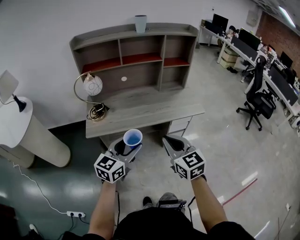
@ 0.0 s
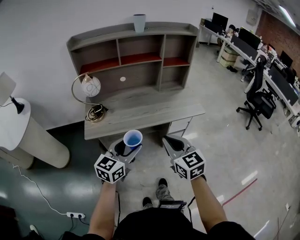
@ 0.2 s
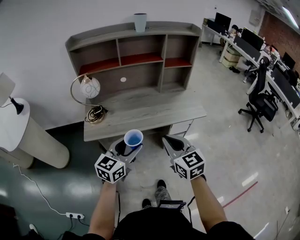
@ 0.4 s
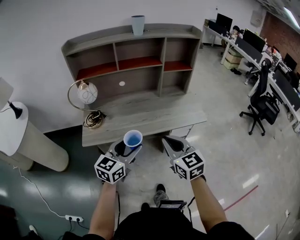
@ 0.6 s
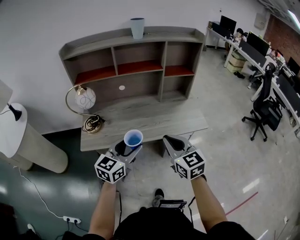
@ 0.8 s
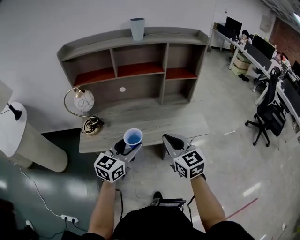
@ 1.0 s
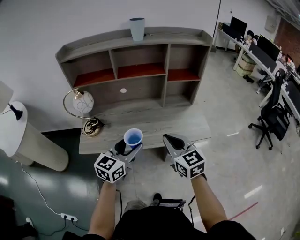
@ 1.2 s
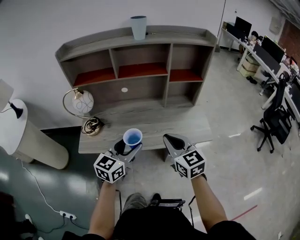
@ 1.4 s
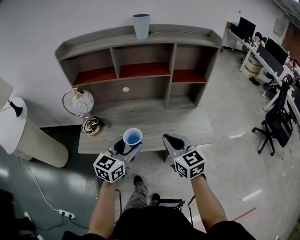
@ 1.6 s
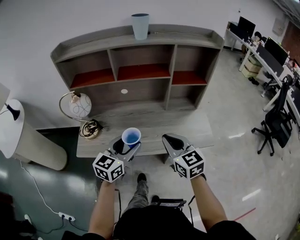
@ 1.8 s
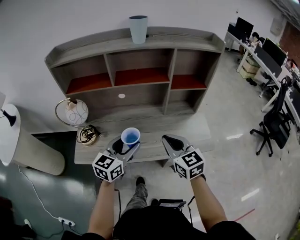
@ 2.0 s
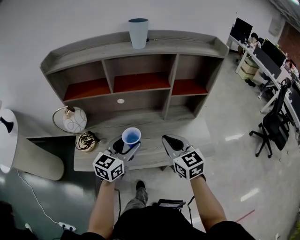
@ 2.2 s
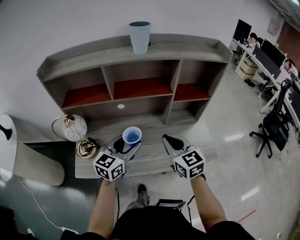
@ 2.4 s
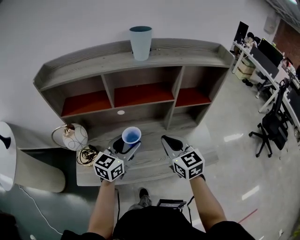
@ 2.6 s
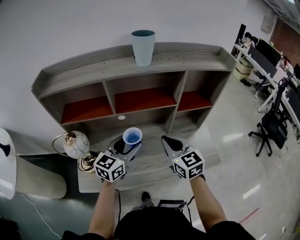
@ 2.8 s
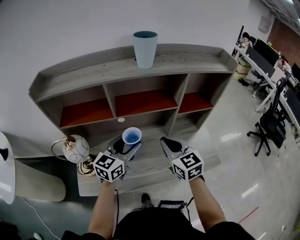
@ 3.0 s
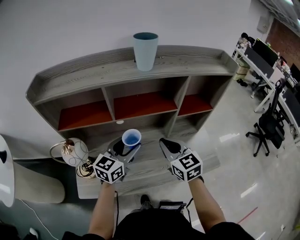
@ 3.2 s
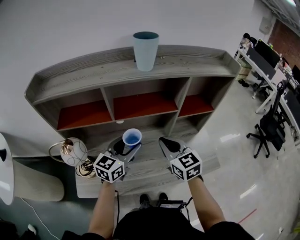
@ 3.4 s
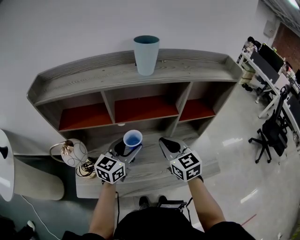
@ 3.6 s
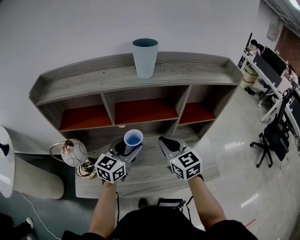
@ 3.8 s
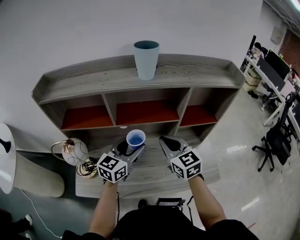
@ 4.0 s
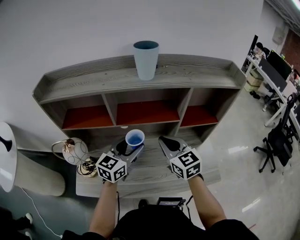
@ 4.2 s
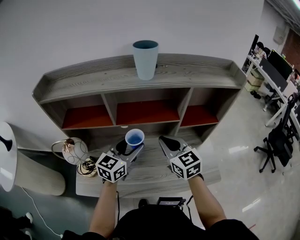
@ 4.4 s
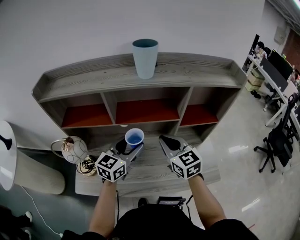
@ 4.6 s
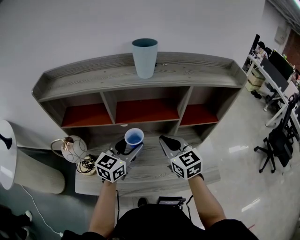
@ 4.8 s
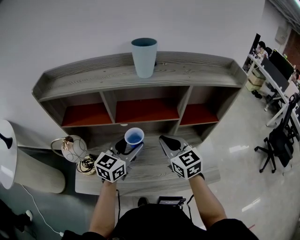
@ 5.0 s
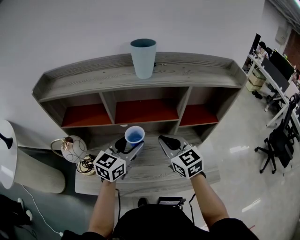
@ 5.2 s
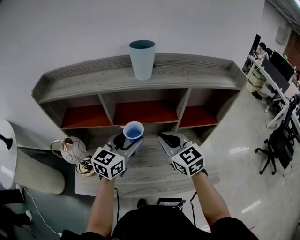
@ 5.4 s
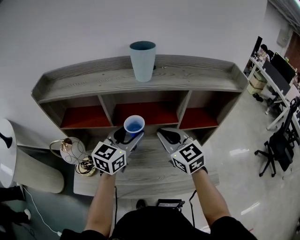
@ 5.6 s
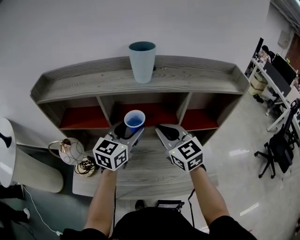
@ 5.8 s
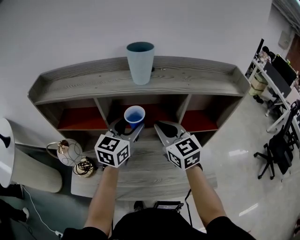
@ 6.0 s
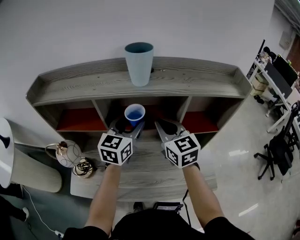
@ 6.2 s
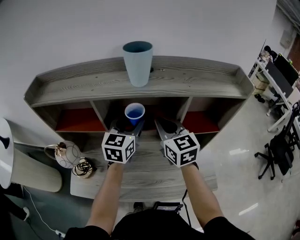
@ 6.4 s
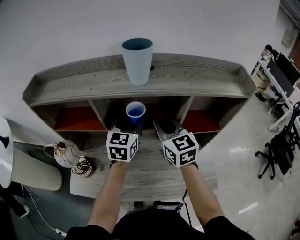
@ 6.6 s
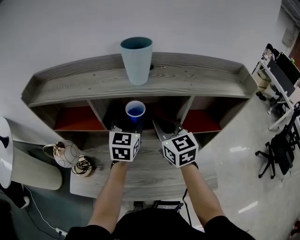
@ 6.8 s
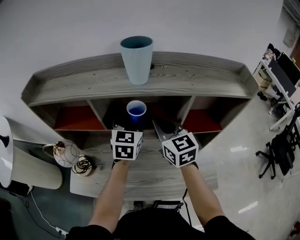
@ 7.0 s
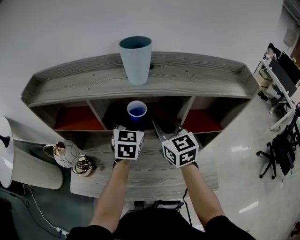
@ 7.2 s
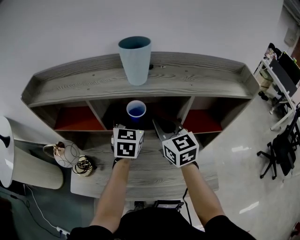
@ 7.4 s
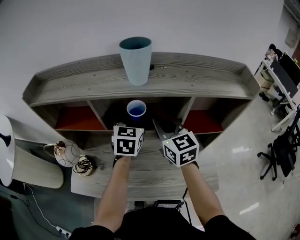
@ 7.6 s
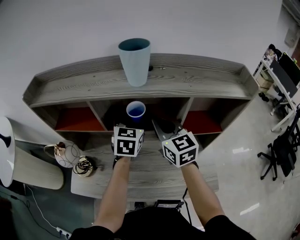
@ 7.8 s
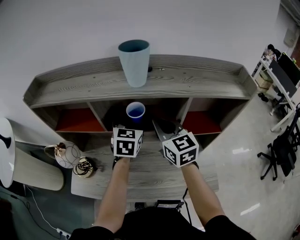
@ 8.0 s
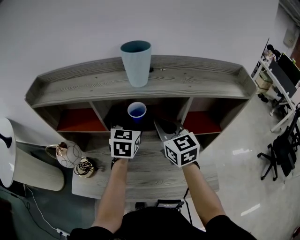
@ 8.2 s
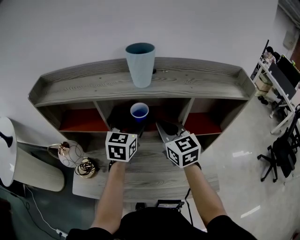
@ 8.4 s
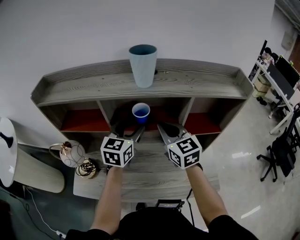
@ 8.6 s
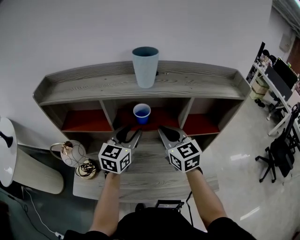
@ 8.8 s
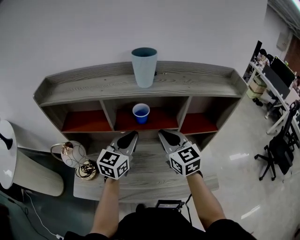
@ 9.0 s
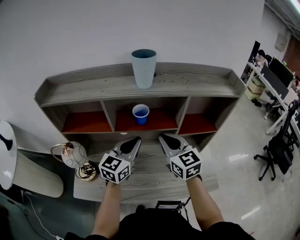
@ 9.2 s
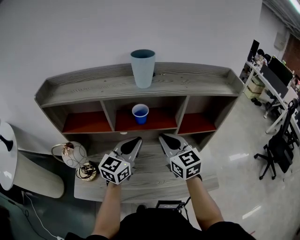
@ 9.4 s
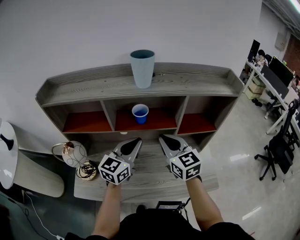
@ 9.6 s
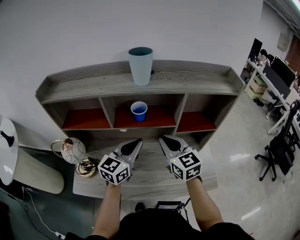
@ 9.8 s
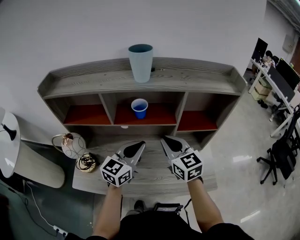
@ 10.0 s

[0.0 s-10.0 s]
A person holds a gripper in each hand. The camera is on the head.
0.0 to 1.4 s: The two grippers go approximately 20 cm forward.
1.4 to 2.8 s: Both grippers travel together forward, approximately 20 cm.
2.8 to 4.2 s: Both grippers move forward, approximately 5 cm.
4.2 to 5.8 s: The right gripper moves upward, some 5 cm. The left gripper goes approximately 10 cm upward and forward.
5.8 to 7.2 s: The two grippers go some 5 cm forward. The left gripper rotates roughly 20 degrees.
7.2 to 8.6 s: The left gripper moves some 5 cm.
8.6 to 10.0 s: Both grippers move backward, approximately 10 cm. The left gripper closes up.

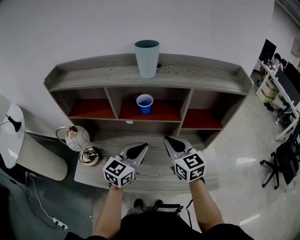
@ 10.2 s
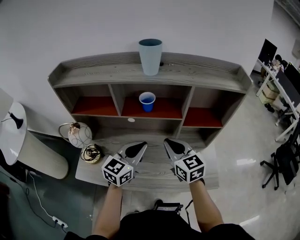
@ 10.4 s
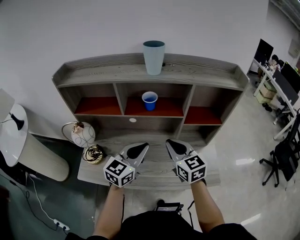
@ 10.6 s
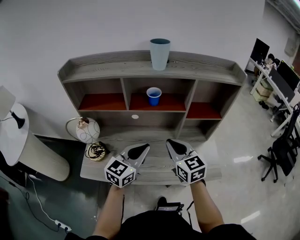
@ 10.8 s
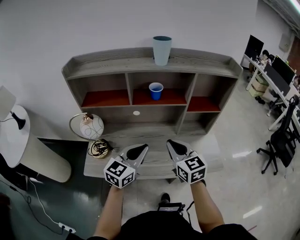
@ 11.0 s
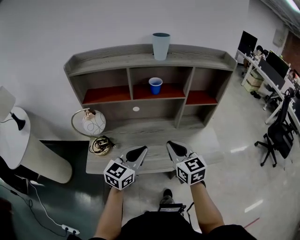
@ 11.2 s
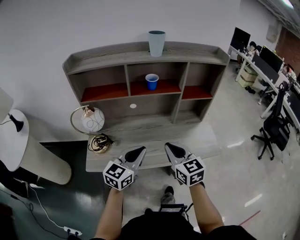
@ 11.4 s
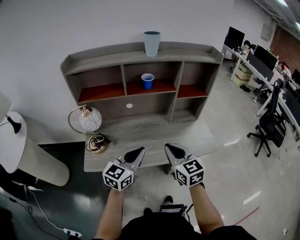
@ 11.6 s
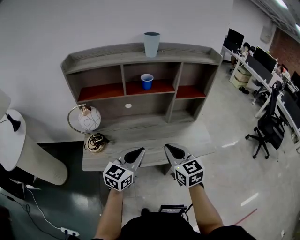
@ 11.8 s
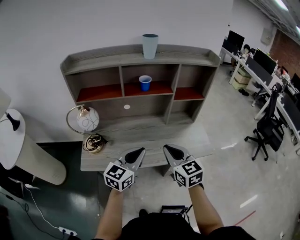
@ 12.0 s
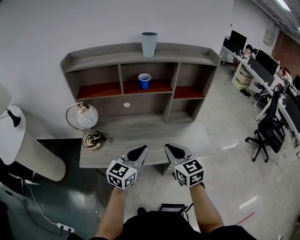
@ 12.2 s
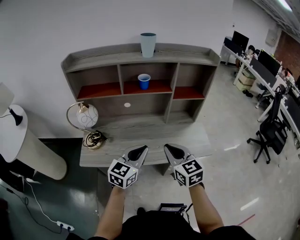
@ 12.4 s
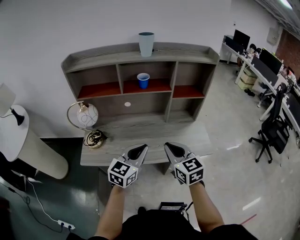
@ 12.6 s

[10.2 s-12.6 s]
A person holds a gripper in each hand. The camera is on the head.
10.2 to 11.4 s: The left gripper is displaced backward and to the left by some 20 cm. Meanwhile the right gripper goes about 20 cm backward.
11.4 to 12.6 s: The two grippers go some 5 cm to the right.

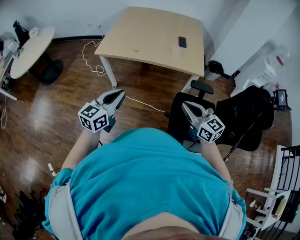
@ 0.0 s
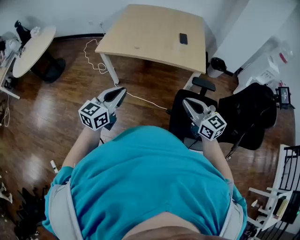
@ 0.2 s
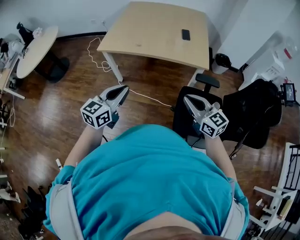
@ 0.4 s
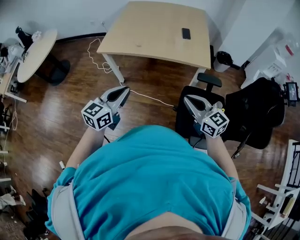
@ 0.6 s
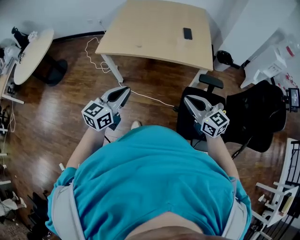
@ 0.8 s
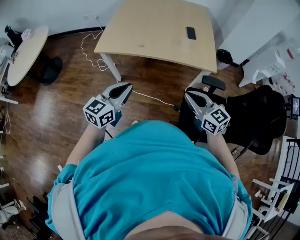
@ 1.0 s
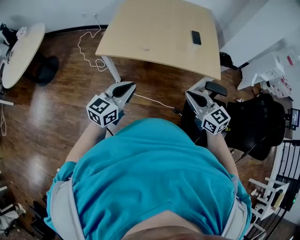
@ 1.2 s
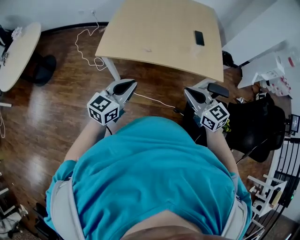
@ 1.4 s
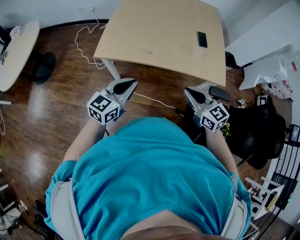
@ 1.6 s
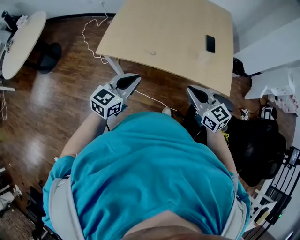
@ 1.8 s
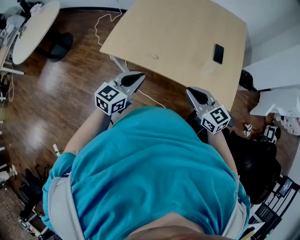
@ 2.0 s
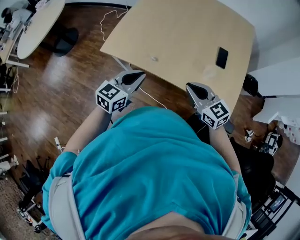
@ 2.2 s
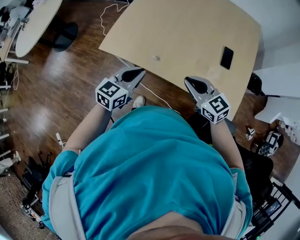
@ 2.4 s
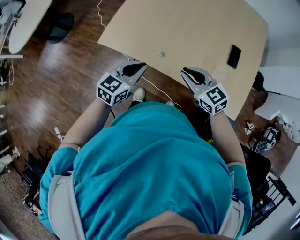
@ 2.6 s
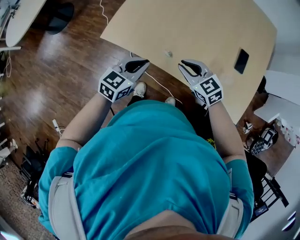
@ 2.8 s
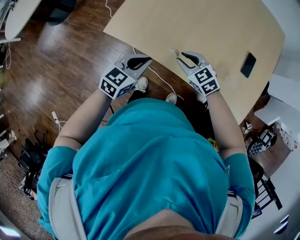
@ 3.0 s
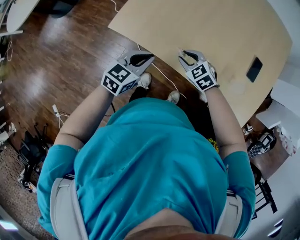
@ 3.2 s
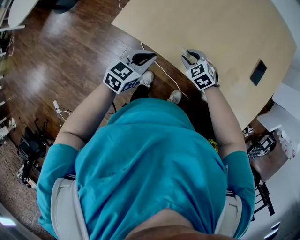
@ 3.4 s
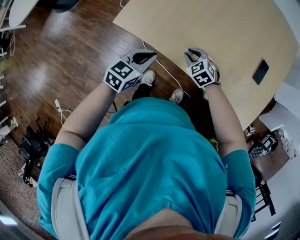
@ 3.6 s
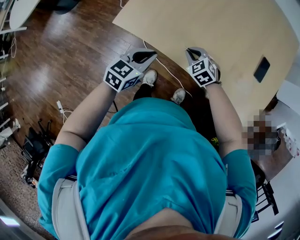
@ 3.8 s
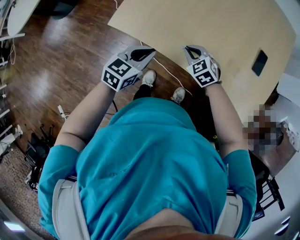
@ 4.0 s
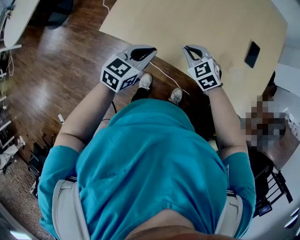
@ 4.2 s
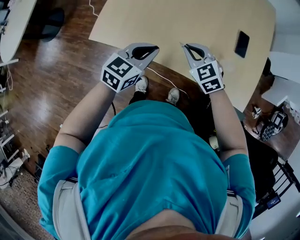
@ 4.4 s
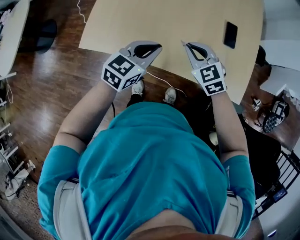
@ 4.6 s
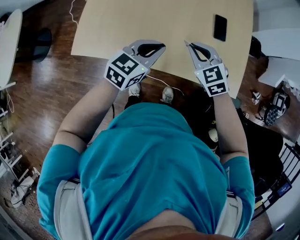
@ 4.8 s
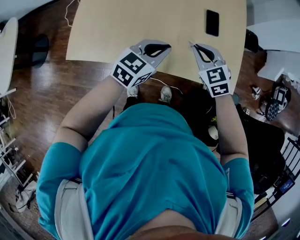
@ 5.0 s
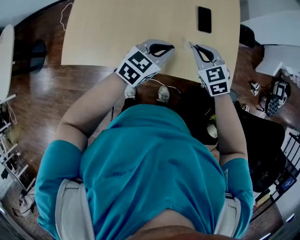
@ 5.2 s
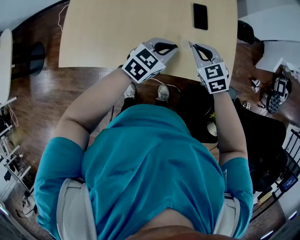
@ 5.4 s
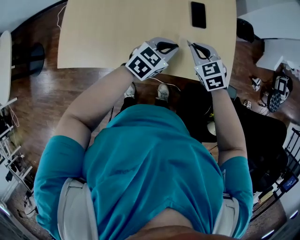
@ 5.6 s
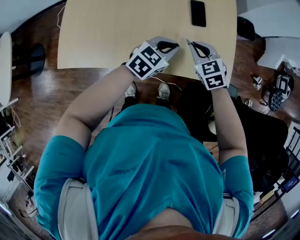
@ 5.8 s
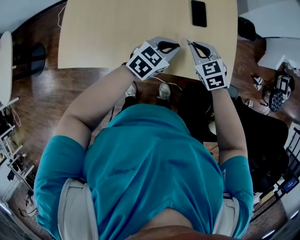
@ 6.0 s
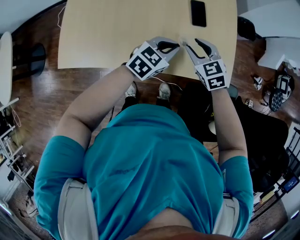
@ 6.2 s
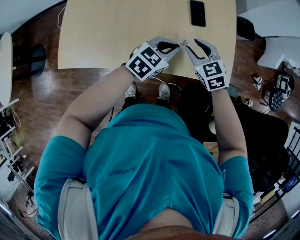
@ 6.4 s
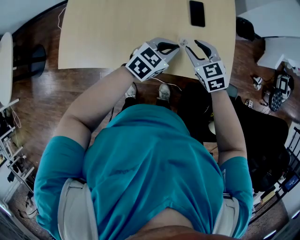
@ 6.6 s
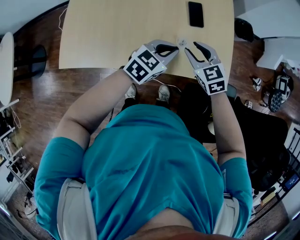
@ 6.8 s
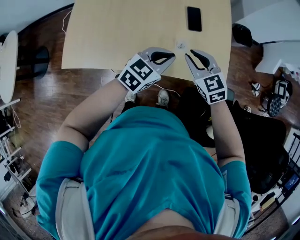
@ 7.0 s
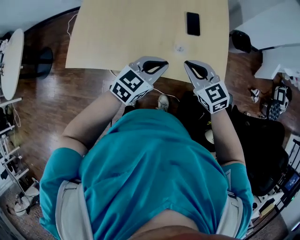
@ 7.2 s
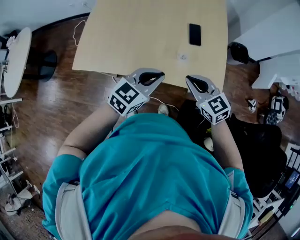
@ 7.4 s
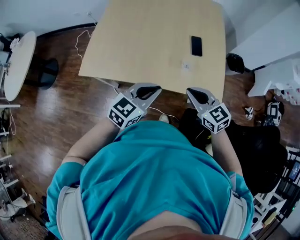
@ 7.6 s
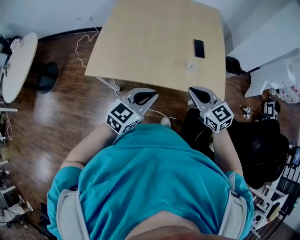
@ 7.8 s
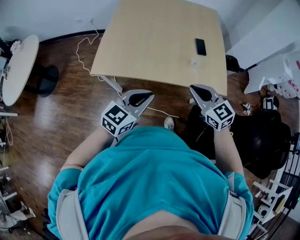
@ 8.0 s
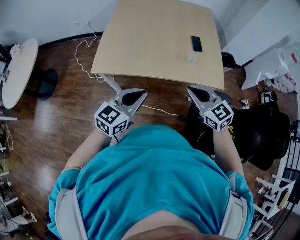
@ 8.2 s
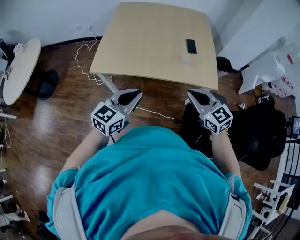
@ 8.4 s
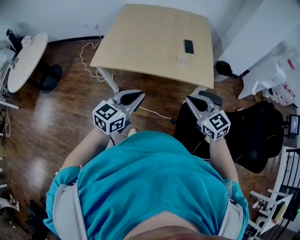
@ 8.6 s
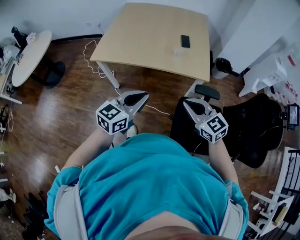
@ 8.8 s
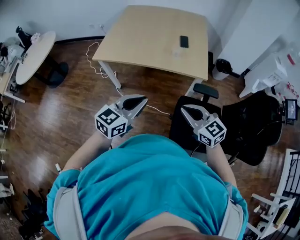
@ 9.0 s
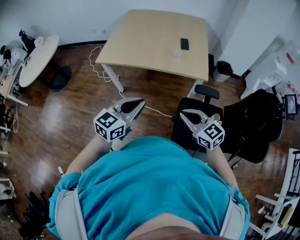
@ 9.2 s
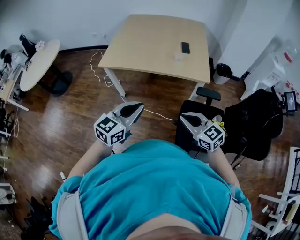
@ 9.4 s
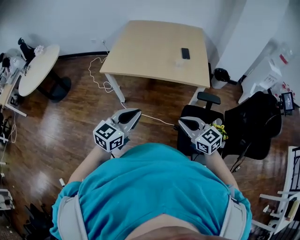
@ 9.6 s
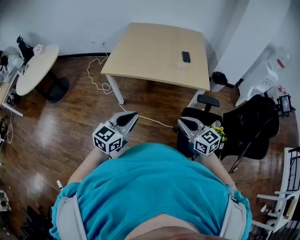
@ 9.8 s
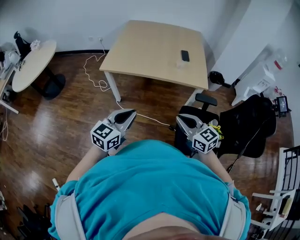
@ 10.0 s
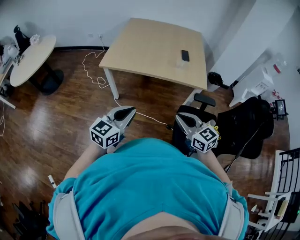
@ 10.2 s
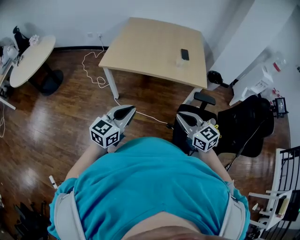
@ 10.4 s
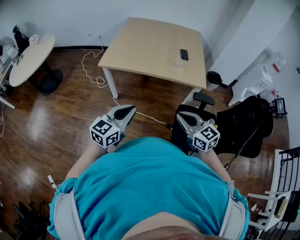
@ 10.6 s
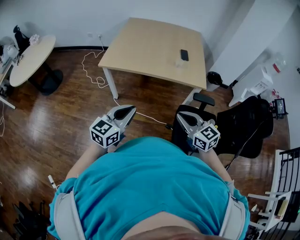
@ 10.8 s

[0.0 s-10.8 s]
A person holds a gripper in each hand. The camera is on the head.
0.0 to 1.6 s: The right gripper travels forward and to the left by approximately 30 cm; the left gripper goes some 25 cm forward.
1.6 to 3.0 s: The two grippers go roughly 30 cm forward and downward. The left gripper turns by approximately 20 degrees. The right gripper rotates some 40 degrees, and opens its fingers.
3.0 to 4.6 s: The two grippers go about 15 cm to the right and upward. The right gripper rotates approximately 20 degrees, and closes its fingers.
4.6 to 6.2 s: The two grippers go some 20 cm to the right. The left gripper turns by roughly 20 degrees. Meanwhile the right gripper opens its fingers.
6.2 to 7.8 s: The left gripper shifts roughly 30 cm backward, upward and to the left. Meanwhile the right gripper shifts about 25 cm backward and upward, rotates roughly 20 degrees, and closes up.
7.8 to 9.2 s: The grippers both shift backward by some 30 cm.
9.2 to 10.8 s: The two grippers go about 10 cm to the left.
